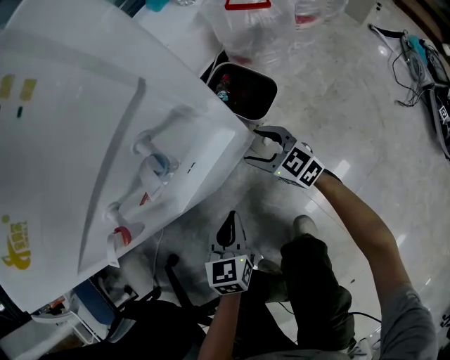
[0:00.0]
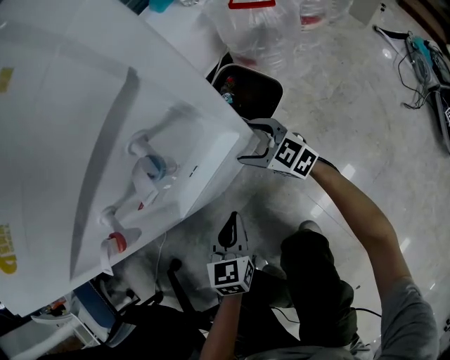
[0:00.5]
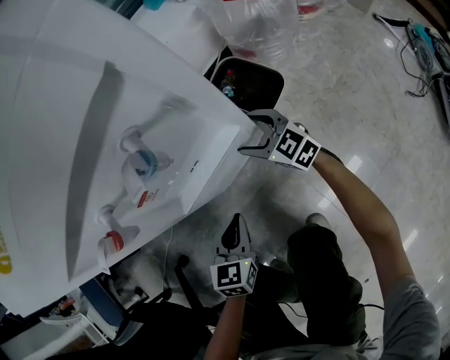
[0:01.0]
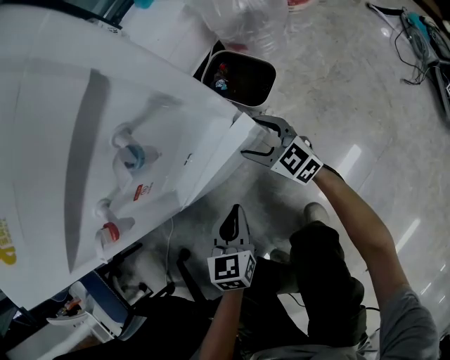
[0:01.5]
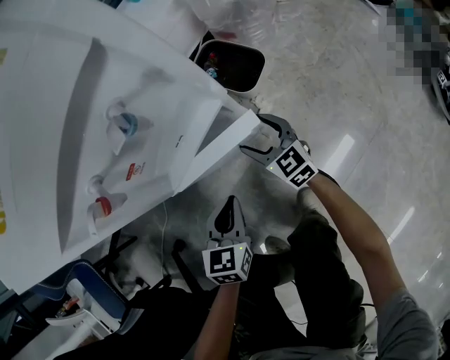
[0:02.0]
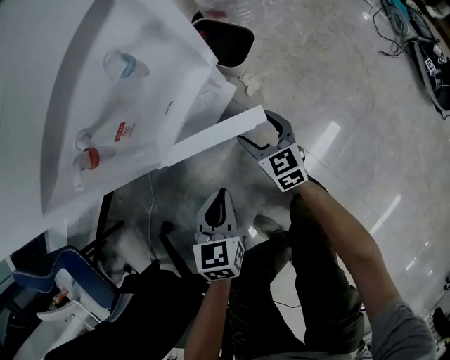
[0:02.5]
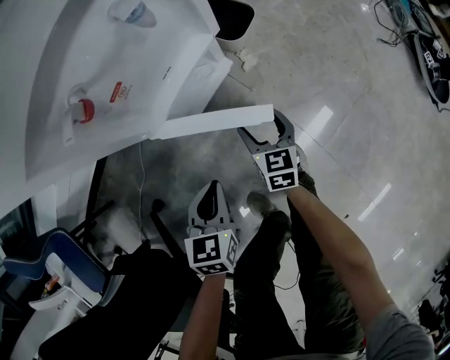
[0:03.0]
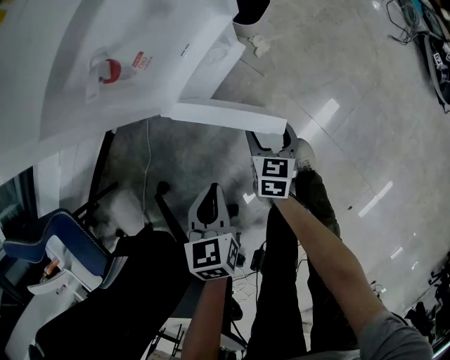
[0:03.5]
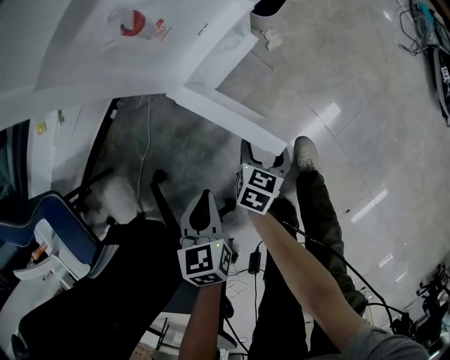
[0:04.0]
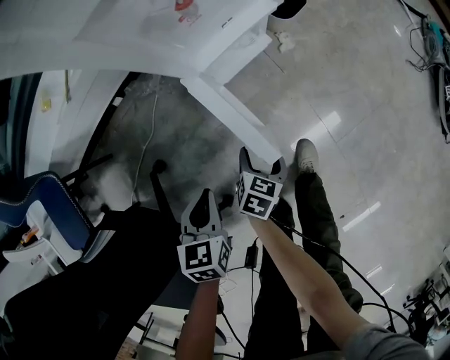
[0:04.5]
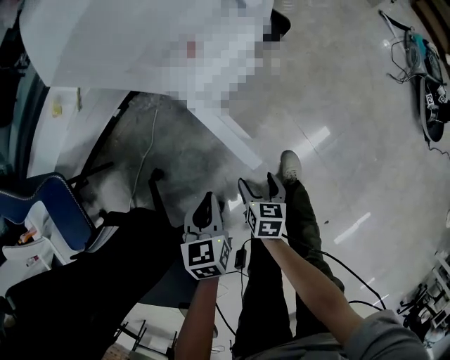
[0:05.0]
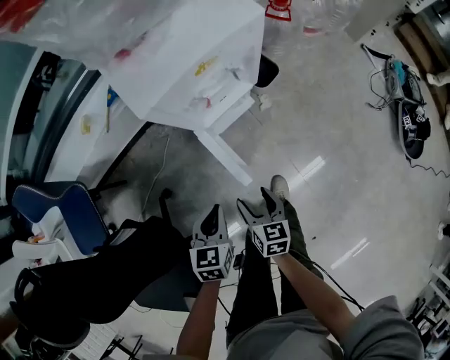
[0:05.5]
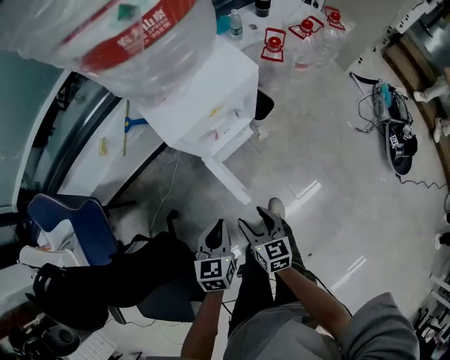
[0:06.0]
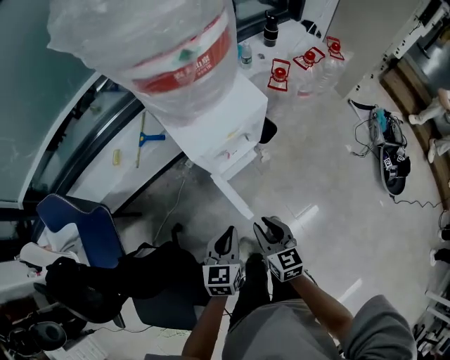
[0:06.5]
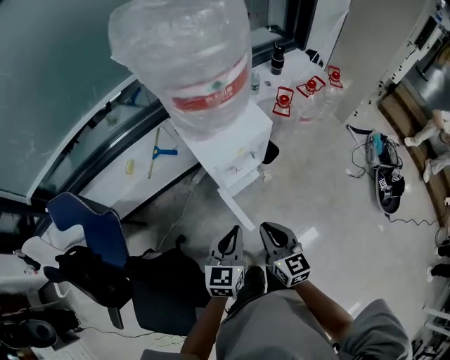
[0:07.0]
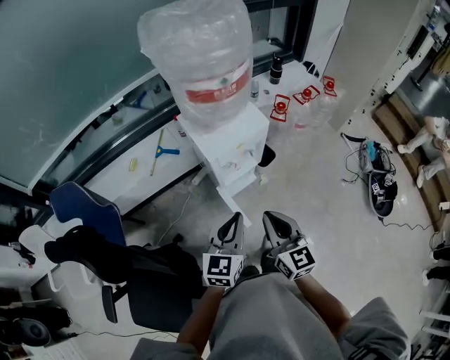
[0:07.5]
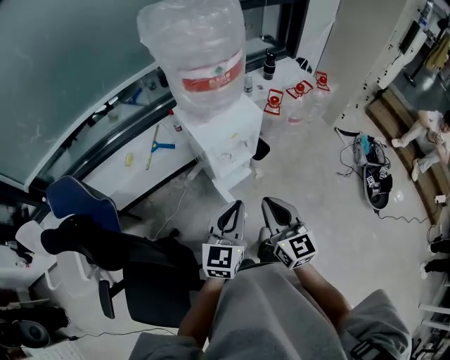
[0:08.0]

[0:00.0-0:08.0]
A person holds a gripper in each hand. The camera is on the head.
0:00.0 to 0:02.0: The grippers make only small movements.
0:02.0 to 0:04.0: The right gripper heads backward, covering about 25 cm, and changes its angle by about 60 degrees. The left gripper heads backward and to the left, covering about 20 cm.
0:04.0 to 0:06.0: The grippers both shift upward by approximately 30 cm. The right gripper rotates about 50 degrees.
0:06.0 to 0:08.0: Both grippers travel together upward, about 30 cm. The left gripper rotates roughly 30 degrees, while the right gripper swivels roughly 30 degrees, and closes its fingers.

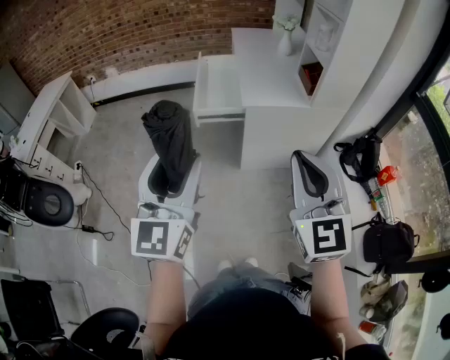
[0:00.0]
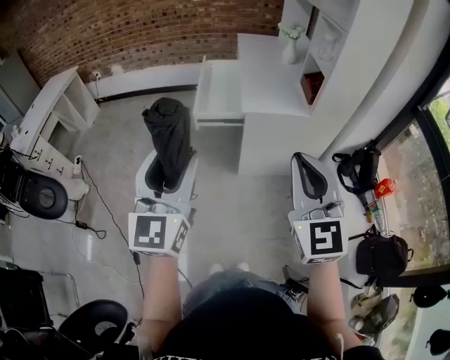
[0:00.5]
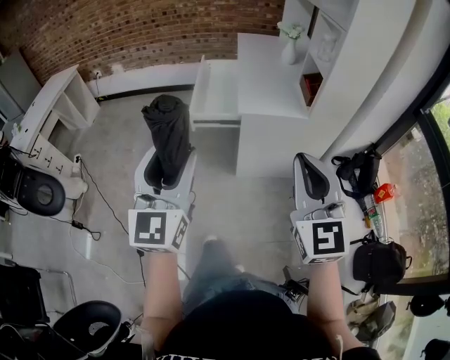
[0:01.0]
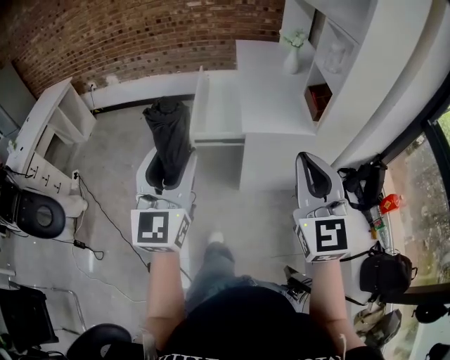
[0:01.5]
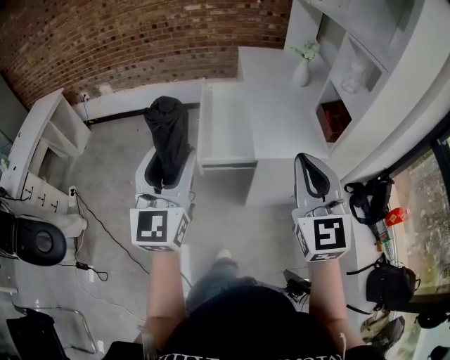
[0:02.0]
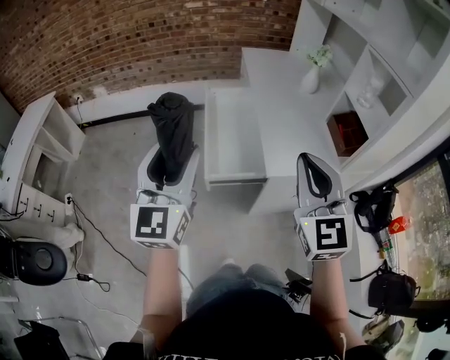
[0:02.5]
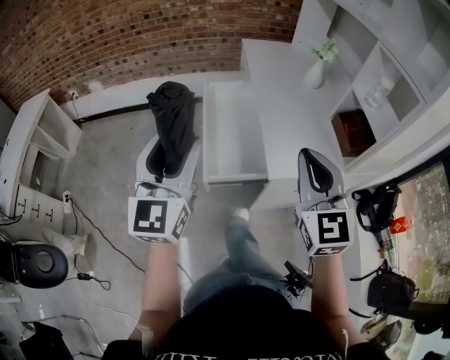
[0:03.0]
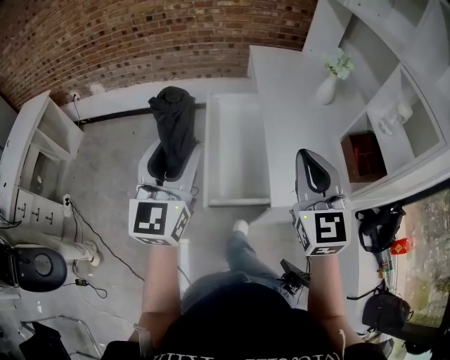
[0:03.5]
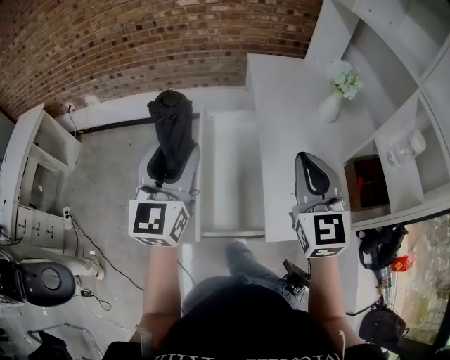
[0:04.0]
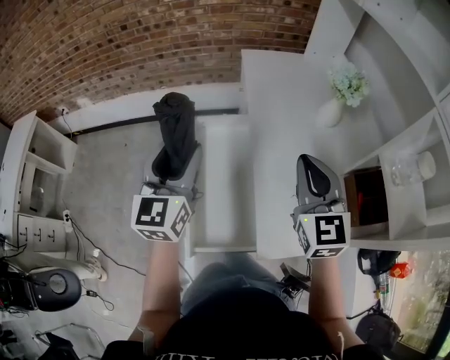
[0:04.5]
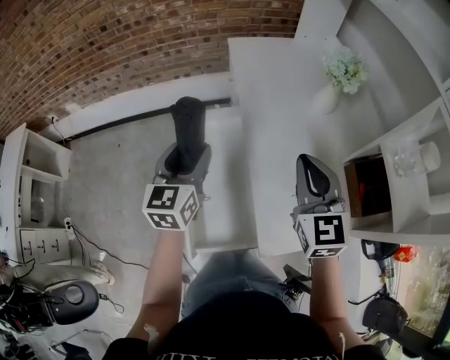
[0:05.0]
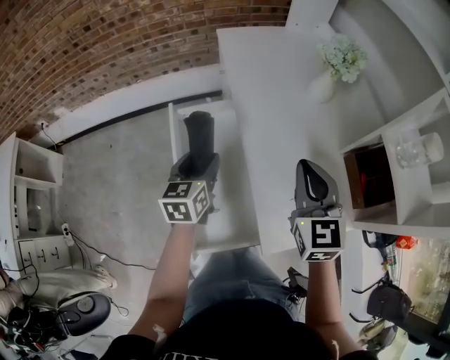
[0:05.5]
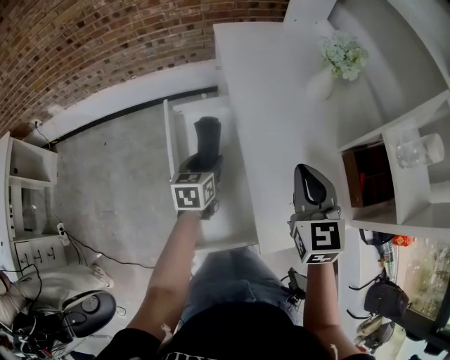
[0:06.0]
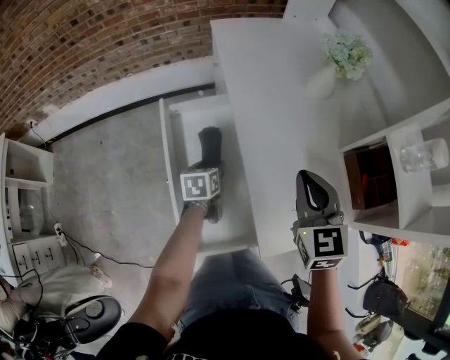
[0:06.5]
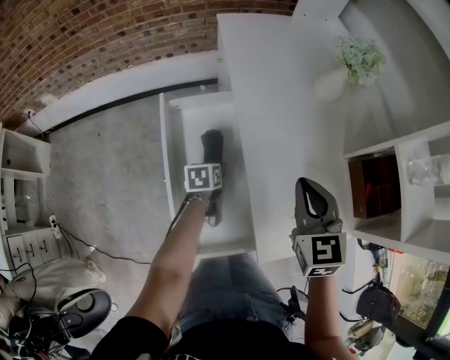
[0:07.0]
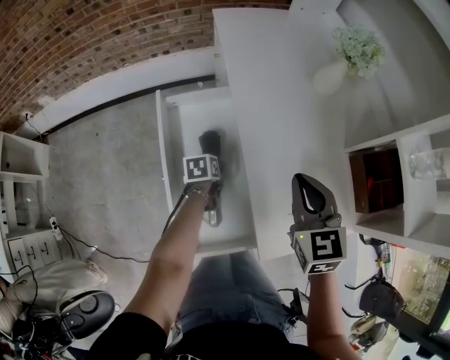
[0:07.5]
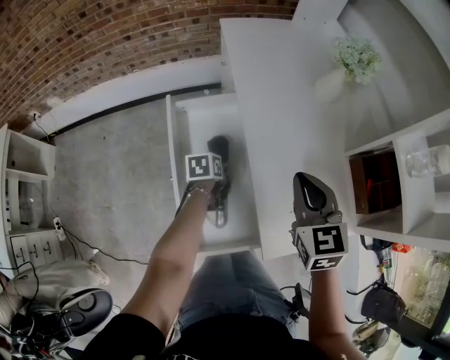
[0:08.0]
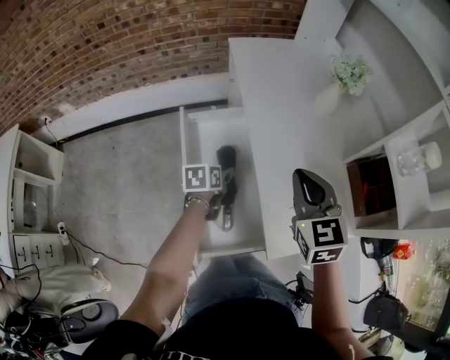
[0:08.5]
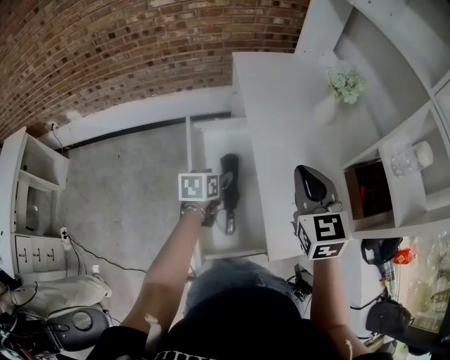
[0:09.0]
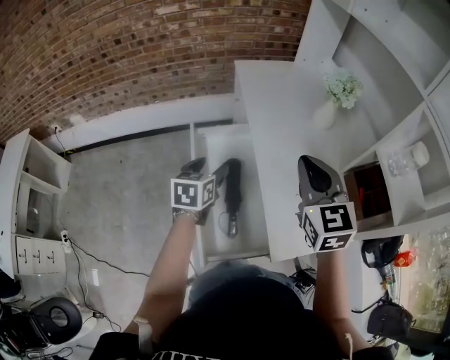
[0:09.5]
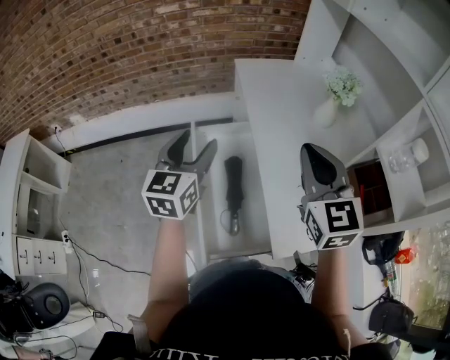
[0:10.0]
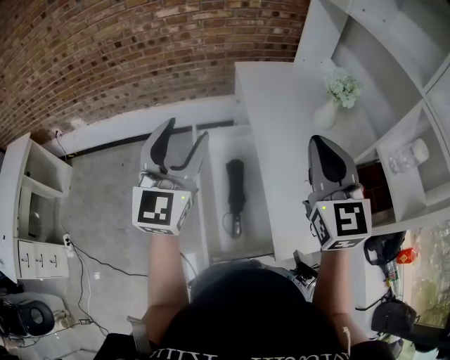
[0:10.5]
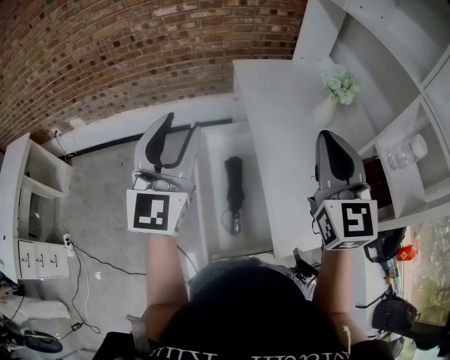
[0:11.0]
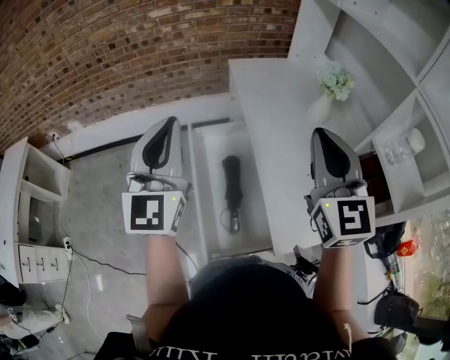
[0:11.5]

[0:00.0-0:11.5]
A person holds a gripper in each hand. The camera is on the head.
0:00.0 to 0:02.0: Both grippers travel together forward, approximately 30 cm.
0:02.0 to 0:04.0: The grippers both shift forward by approximately 40 cm.
0:04.0 to 0:06.0: The left gripper is displaced downward and forward by approximately 35 cm, and tilts its fingers approximately 40 degrees downward. The right gripper is displaced downward, forward and to the right by roughly 15 cm.
0:06.0 to 0:07.5: The left gripper travels downward by approximately 15 cm, and rotates roughly 30 degrees, while the right gripper moves downward, some 5 cm.
0:07.5 to 0:09.5: The right gripper is displaced upward by roughly 15 cm; the left gripper moves upward, some 25 cm, and turns by about 40 degrees.
0:09.5 to 0:11.5: The left gripper is displaced upward by some 25 cm, tilts its fingers some 40 degrees upward, and closes up. Meanwhile the right gripper is displaced upward by approximately 10 cm.

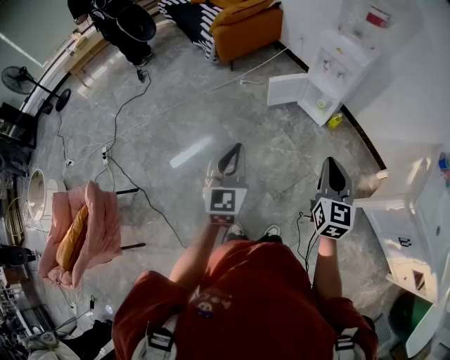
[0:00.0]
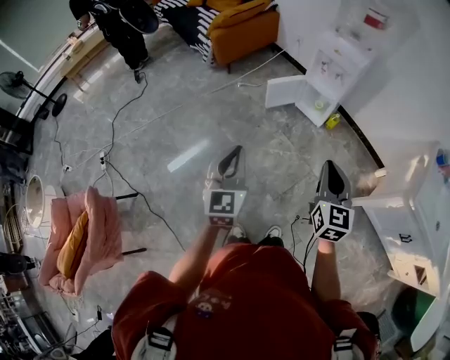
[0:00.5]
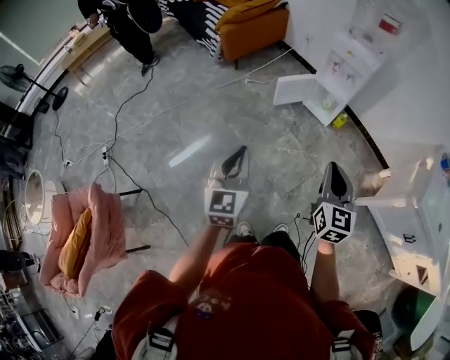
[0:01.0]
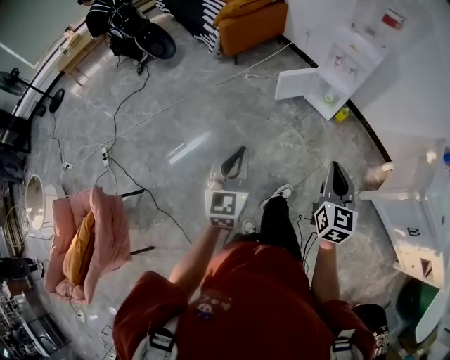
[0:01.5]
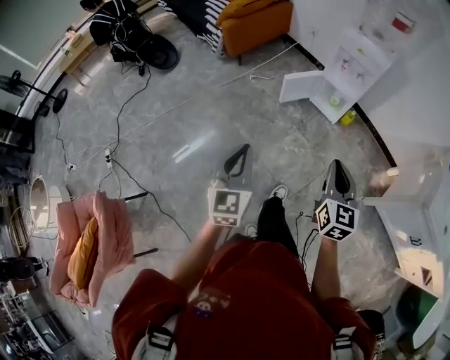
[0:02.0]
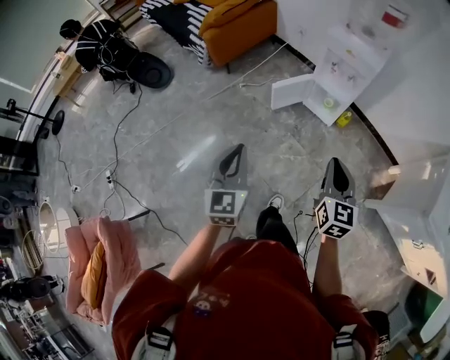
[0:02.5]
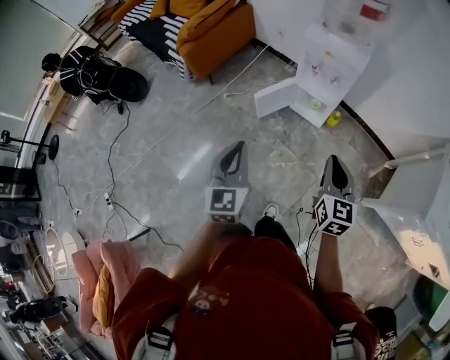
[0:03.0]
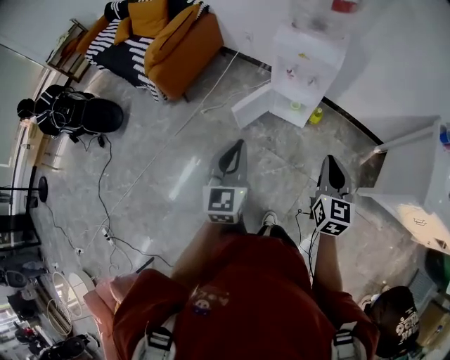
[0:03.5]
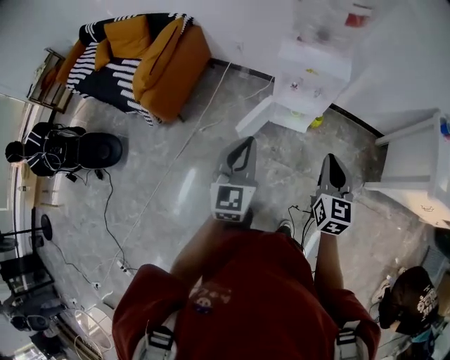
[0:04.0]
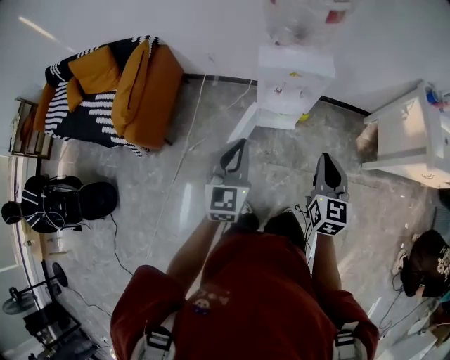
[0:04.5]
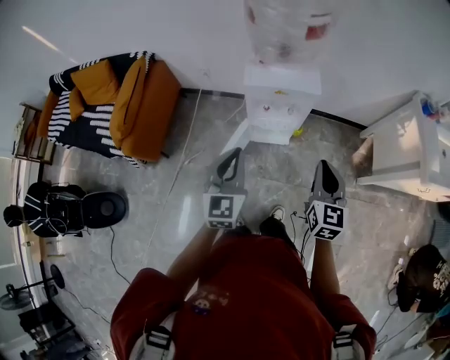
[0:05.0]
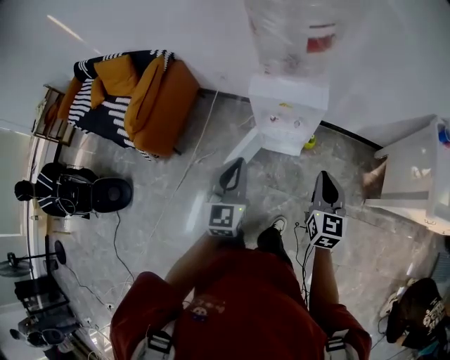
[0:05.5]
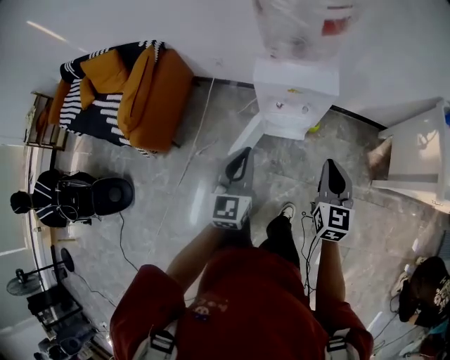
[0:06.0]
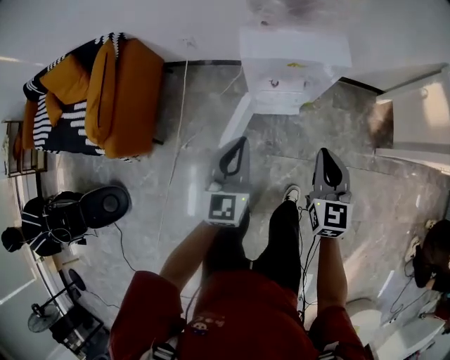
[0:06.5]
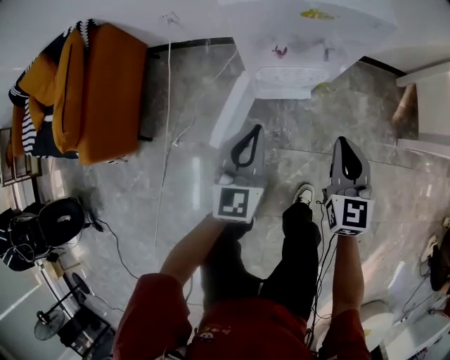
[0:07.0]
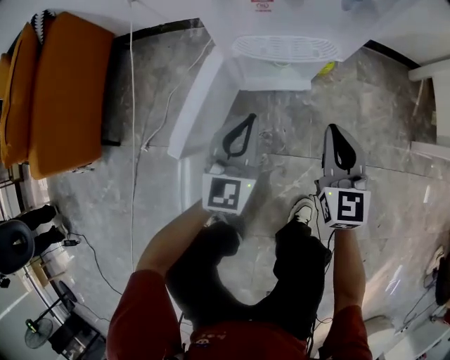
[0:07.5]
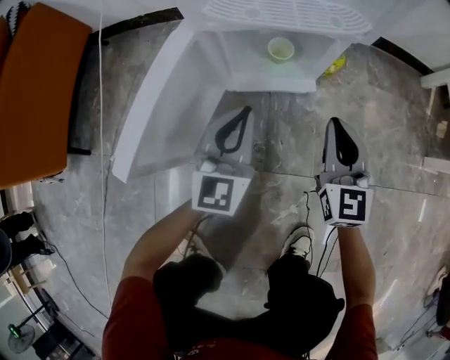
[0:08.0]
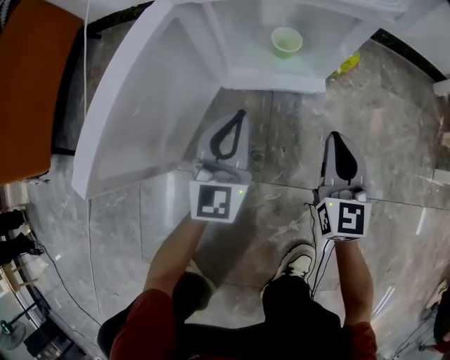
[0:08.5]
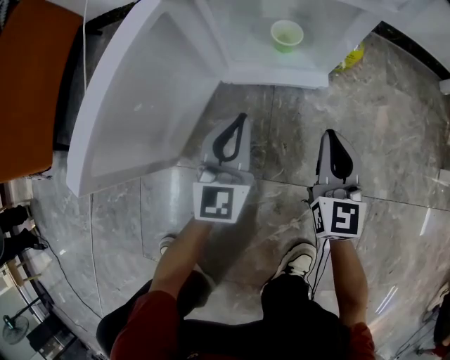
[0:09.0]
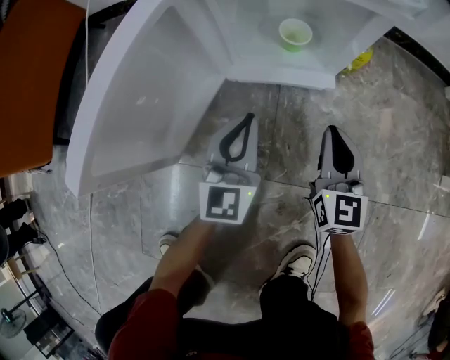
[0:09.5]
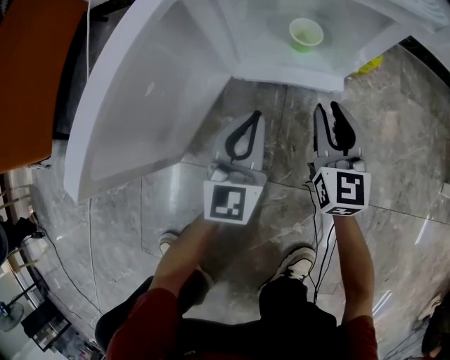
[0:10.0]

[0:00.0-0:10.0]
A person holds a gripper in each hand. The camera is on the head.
0:00.0 to 0:02.0: Both grippers travel together to the left, about 10 cm.
0:02.0 to 0:04.0: The right gripper changes place by about 40 cm, and rotates about 30 degrees, while the left gripper changes place by about 50 cm, and turns by approximately 30 degrees.
0:04.0 to 0:06.0: Both grippers travel together forward, some 15 cm.
0:06.0 to 0:08.0: The two grippers go some 70 cm downward.
0:08.0 to 0:10.0: The left gripper moves downward, some 15 cm; the right gripper heads downward and forward, covering approximately 15 cm.
